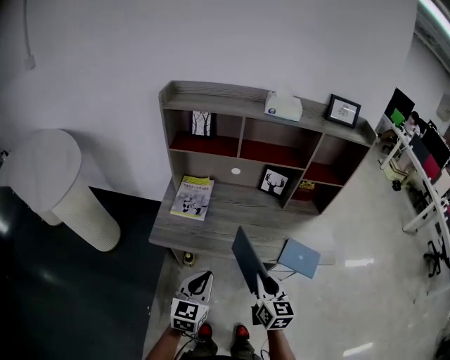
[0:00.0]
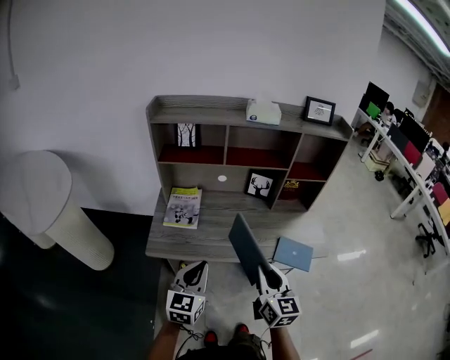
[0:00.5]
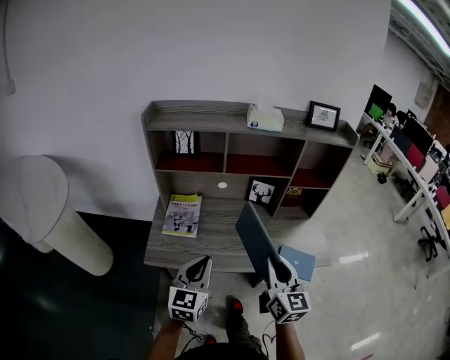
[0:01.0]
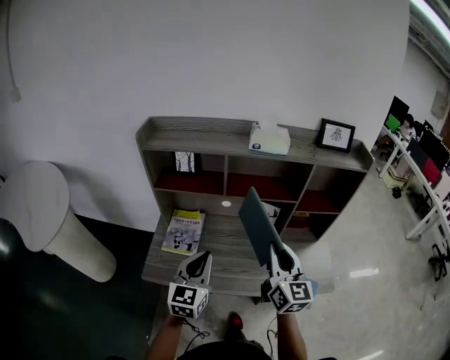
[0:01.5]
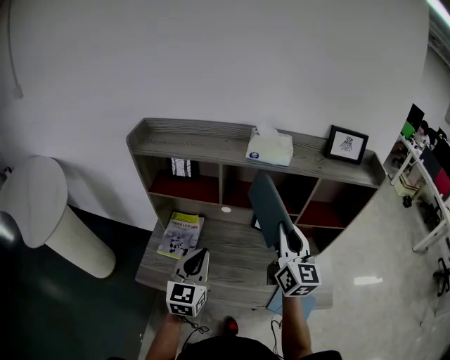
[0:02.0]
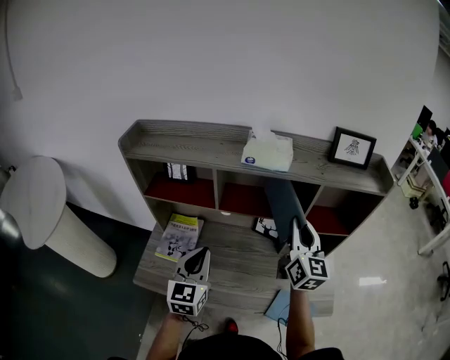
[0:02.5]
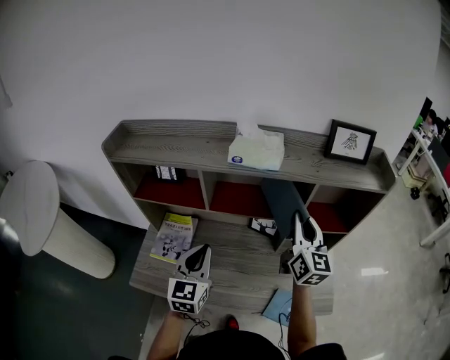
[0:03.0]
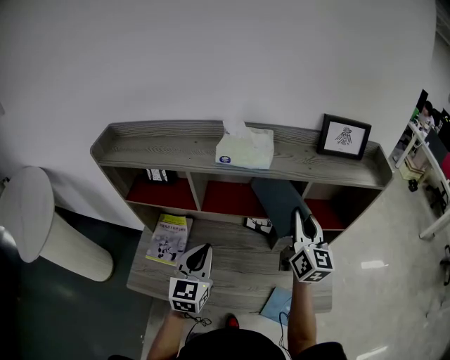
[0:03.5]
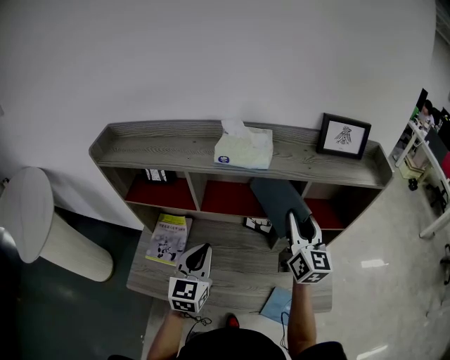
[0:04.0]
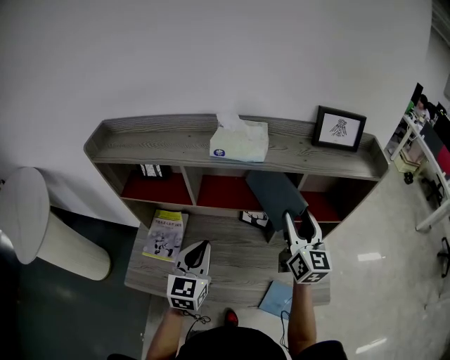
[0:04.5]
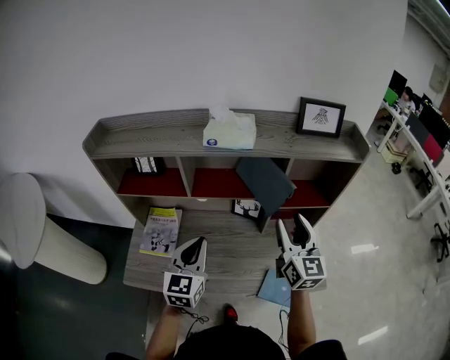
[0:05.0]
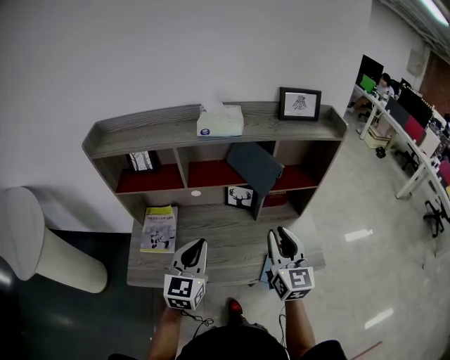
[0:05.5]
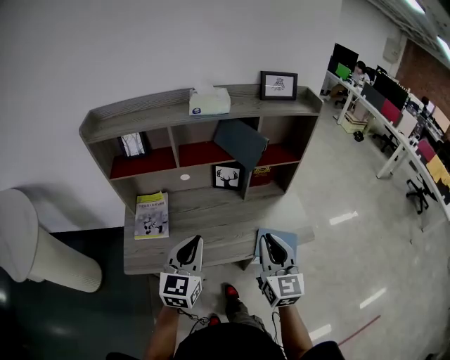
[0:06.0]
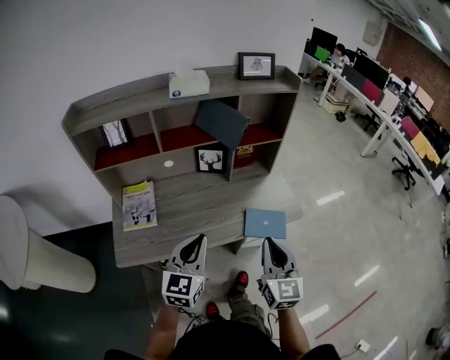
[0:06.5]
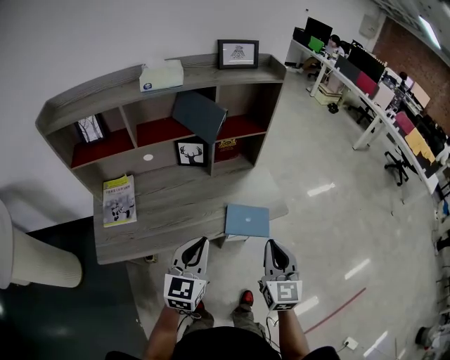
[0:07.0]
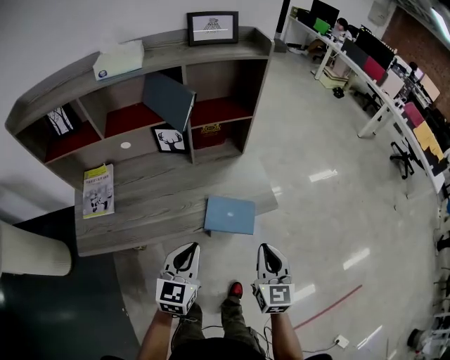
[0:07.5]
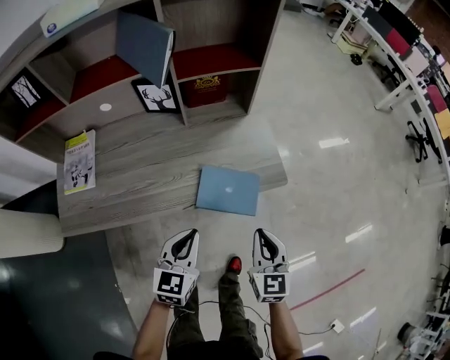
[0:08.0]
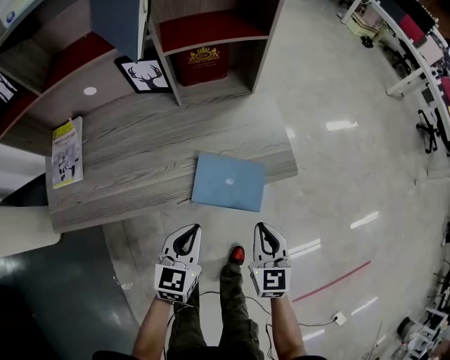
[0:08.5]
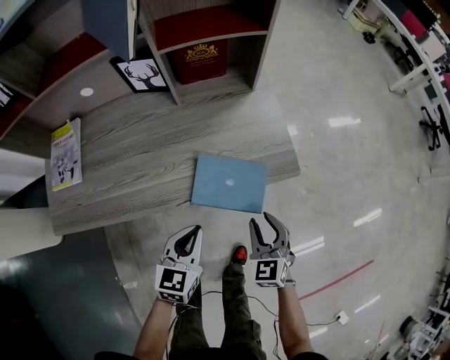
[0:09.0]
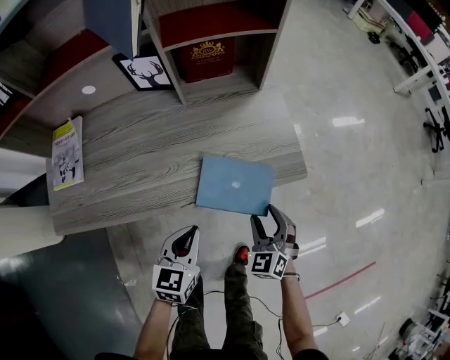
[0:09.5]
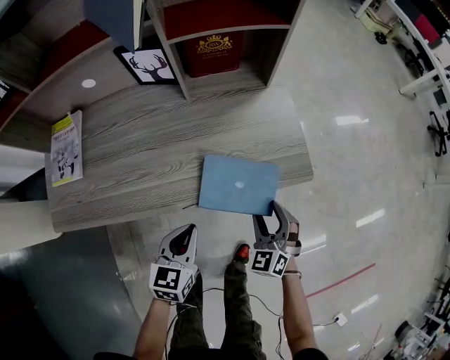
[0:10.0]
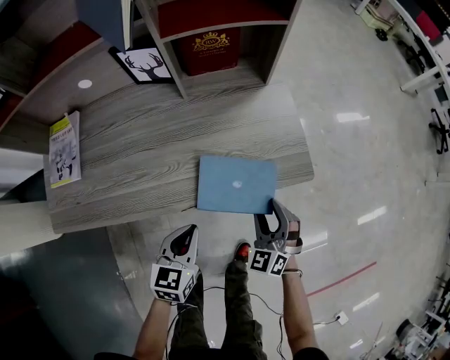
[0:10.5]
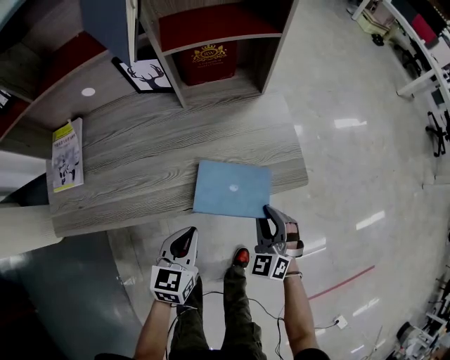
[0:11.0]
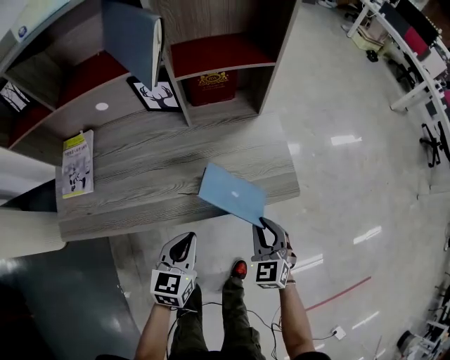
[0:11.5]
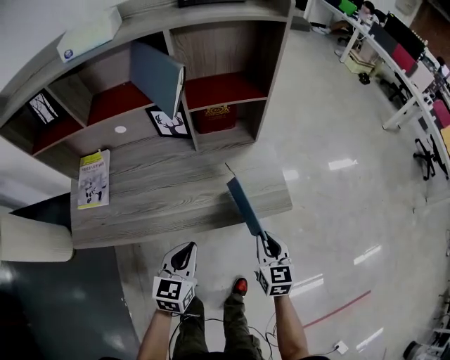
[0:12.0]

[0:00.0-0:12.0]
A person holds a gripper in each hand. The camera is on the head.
0:00.0 to 0:02.0: The right gripper goes roughly 35 cm forward and upward, and turns by approximately 20 degrees; the left gripper is displaced forward by roughly 25 cm.
0:02.0 to 0:04.0: Both grippers travel together forward and to the right, about 15 cm.
0:04.0 to 0:06.0: The right gripper moves backward, approximately 35 cm, swivels about 20 degrees, and closes up, while the left gripper is displaced backward by approximately 20 cm.
0:06.0 to 0:08.0: The right gripper heads downward and to the right, covering roughly 35 cm, and rotates some 20 degrees. Meanwhile the left gripper goes approximately 35 cm to the right and downward, and rotates approximately 20 degrees.
0:08.0 to 0:10.0: The right gripper heads downward and forward, covering about 20 cm, swivels roughly 40 degrees, and opens up; the left gripper goes approximately 10 cm downward.
0:10.0 to 0:12.0: Both grippers move upward, roughly 10 cm. The right gripper rotates some 40 degrees, and closes up.

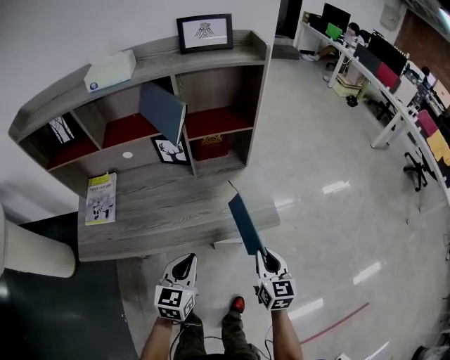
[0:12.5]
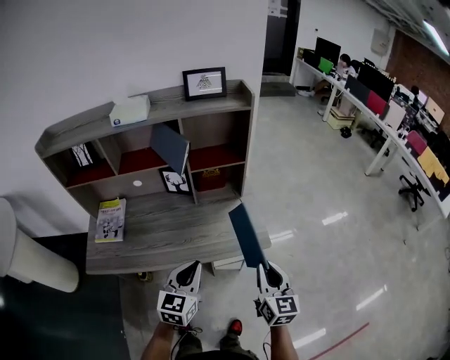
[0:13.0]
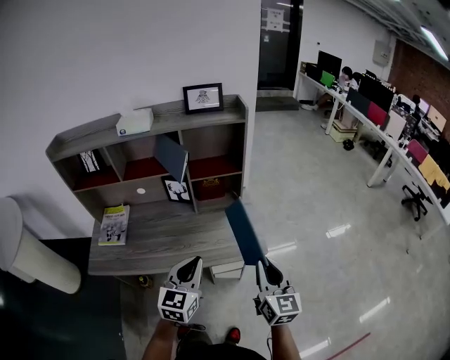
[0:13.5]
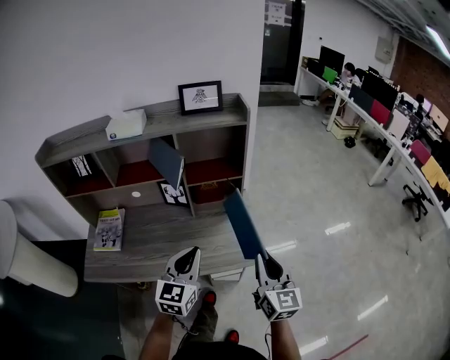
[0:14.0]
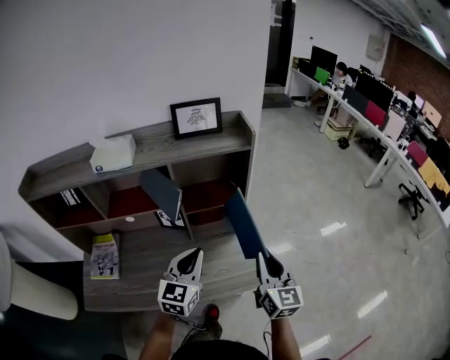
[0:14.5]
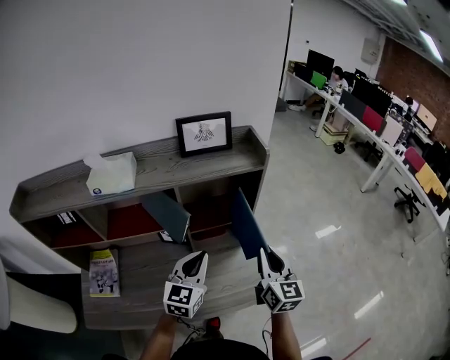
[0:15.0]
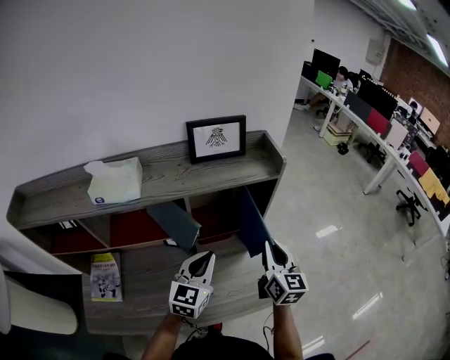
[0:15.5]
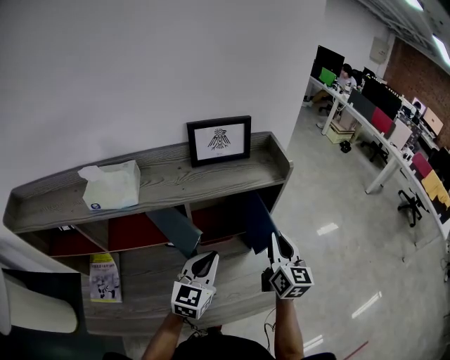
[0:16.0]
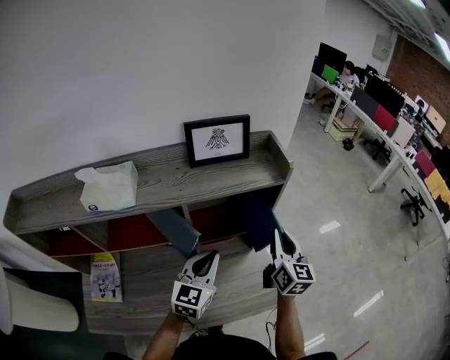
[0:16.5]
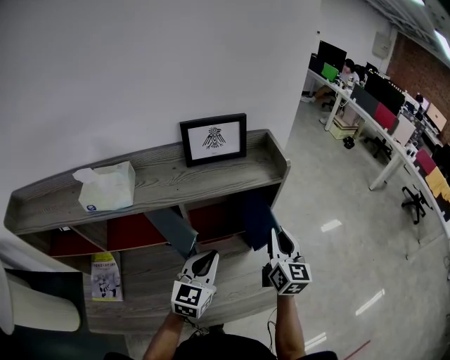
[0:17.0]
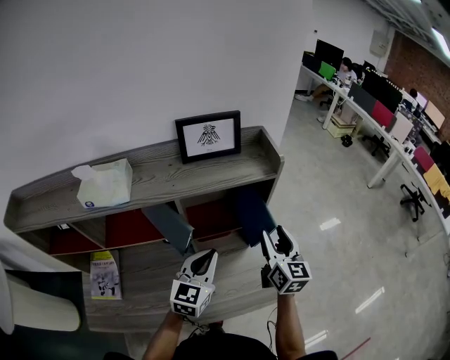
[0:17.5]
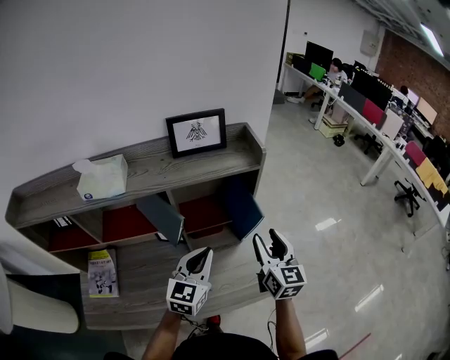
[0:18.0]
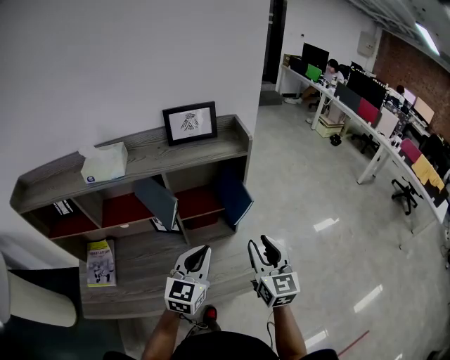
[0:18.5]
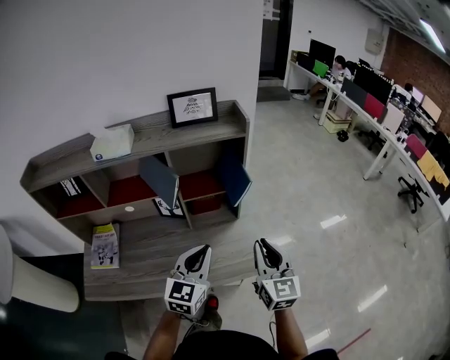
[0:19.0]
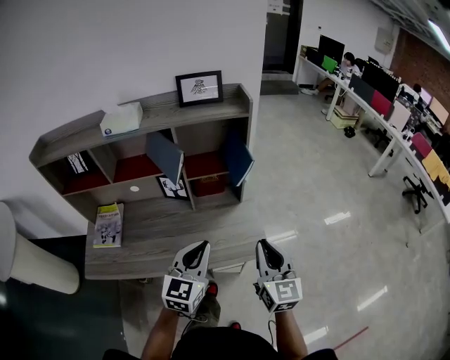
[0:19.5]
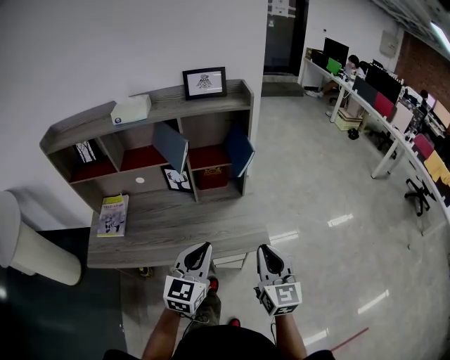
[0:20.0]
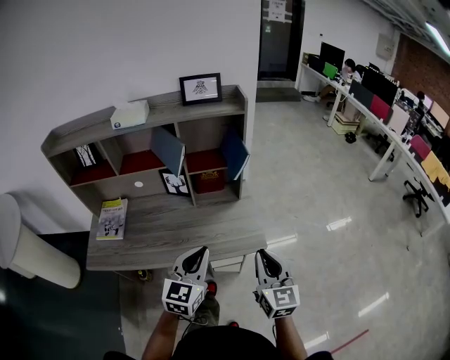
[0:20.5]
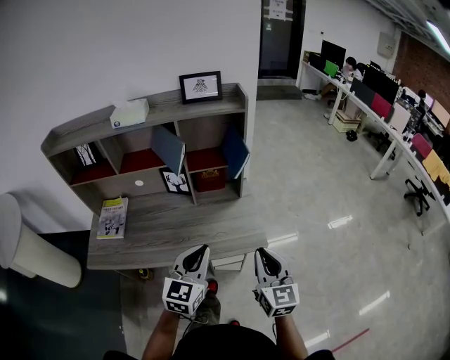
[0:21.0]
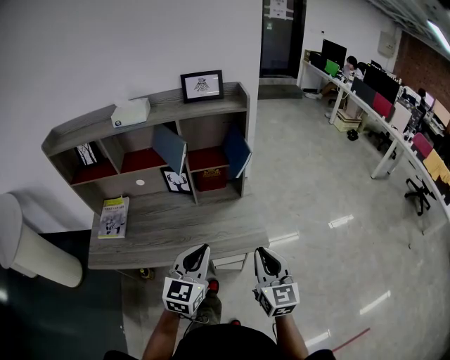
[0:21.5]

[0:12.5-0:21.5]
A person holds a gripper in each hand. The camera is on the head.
0:12.5 to 0:14.5: The right gripper heads upward and forward, covering roughly 25 cm, and rotates about 20 degrees, while the left gripper is displaced forward and upward by roughly 25 cm.
0:14.5 to 0:17.0: The left gripper moves forward, approximately 15 cm; the right gripper heads forward, covering roughly 20 cm.
0:17.0 to 0:19.5: The grippers both shift backward by about 25 cm. The right gripper opens and closes again.
0:19.5 to 0:21.5: The two grippers go some 5 cm backward.

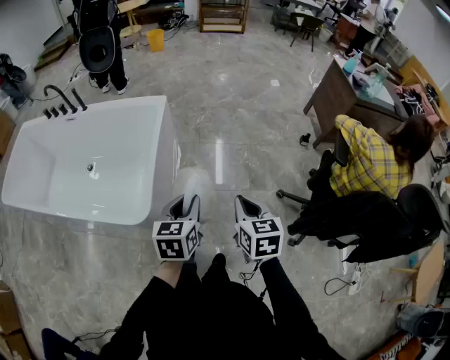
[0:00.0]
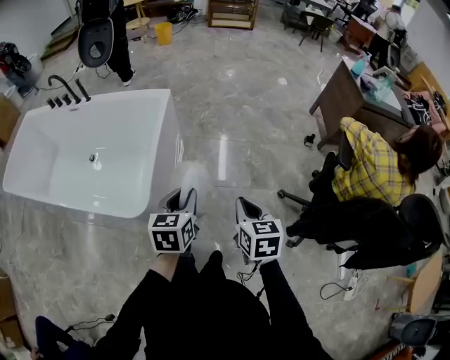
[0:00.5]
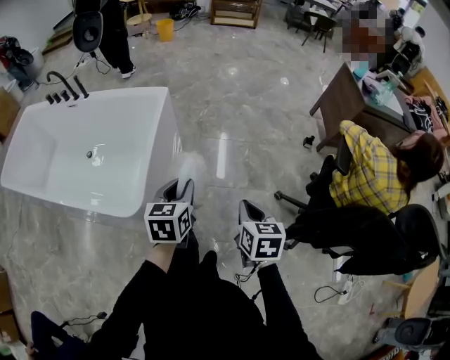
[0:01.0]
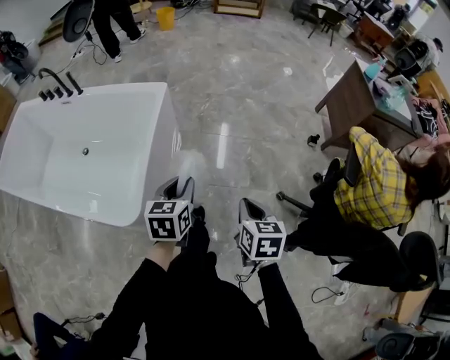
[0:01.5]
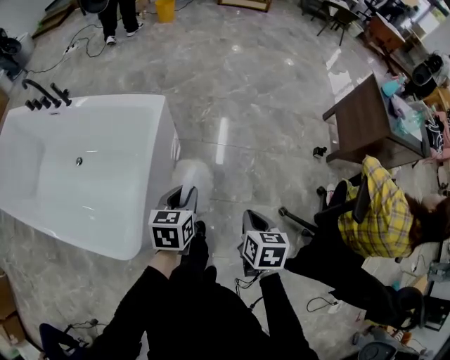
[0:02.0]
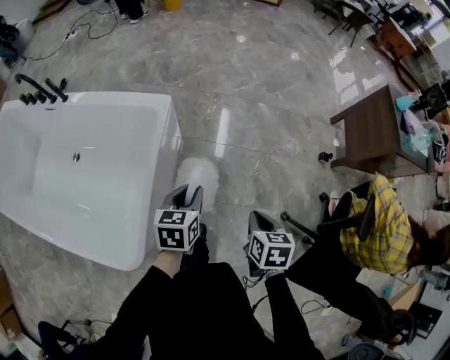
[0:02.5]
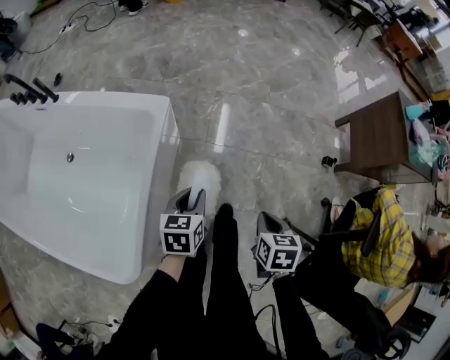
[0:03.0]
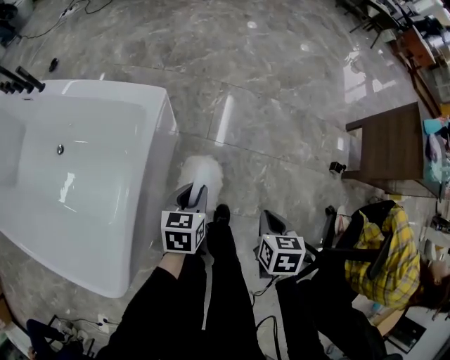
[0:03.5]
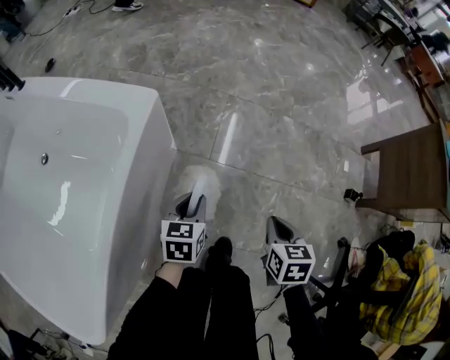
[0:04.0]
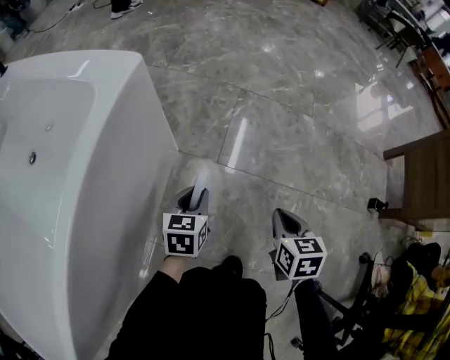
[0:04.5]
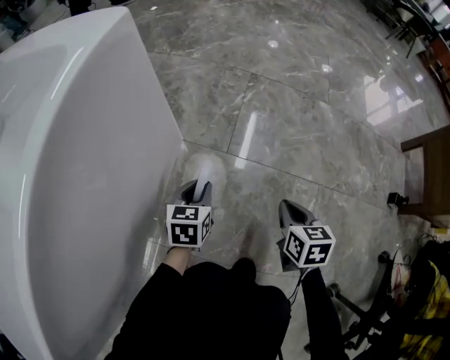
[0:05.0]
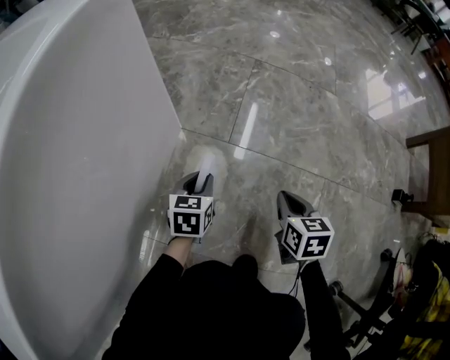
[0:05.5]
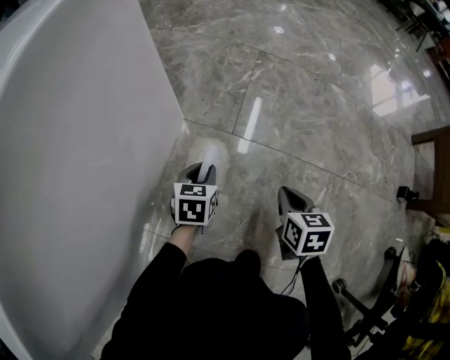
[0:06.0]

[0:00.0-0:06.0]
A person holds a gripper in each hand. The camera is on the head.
0:00.0 to 0:02.0: The left gripper heads forward, covering roughly 25 cm. Meanwhile the right gripper heads forward and downward, covering approximately 20 cm.
0:02.0 to 0:04.0: Both grippers move downward and forward, roughly 40 cm.
0:04.0 to 0:06.0: Both grippers travel together downward, about 30 cm.
